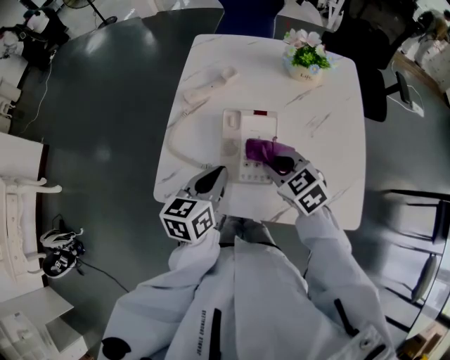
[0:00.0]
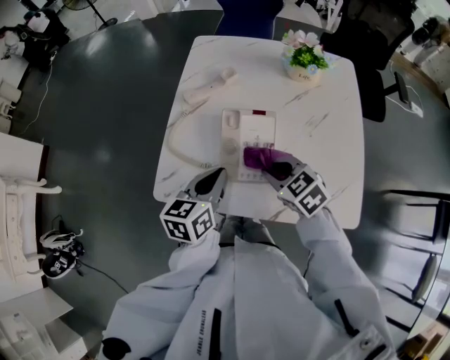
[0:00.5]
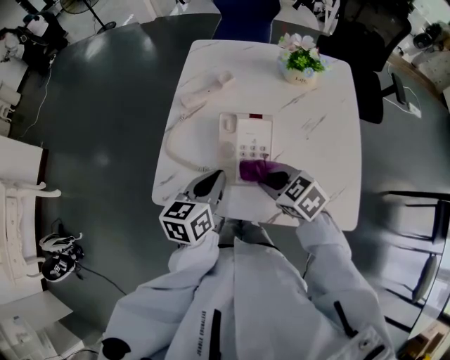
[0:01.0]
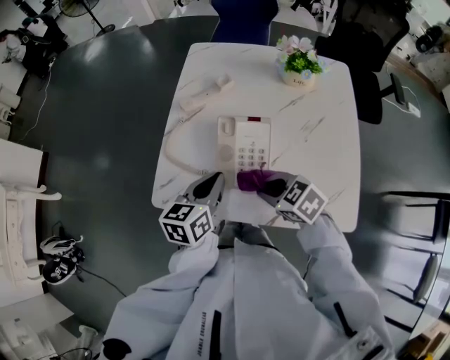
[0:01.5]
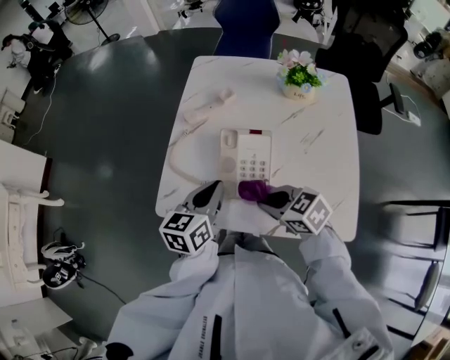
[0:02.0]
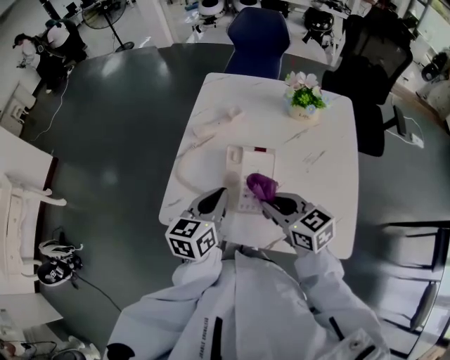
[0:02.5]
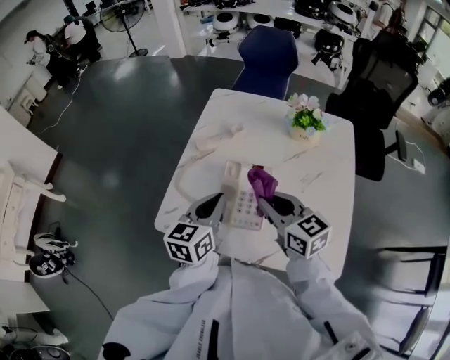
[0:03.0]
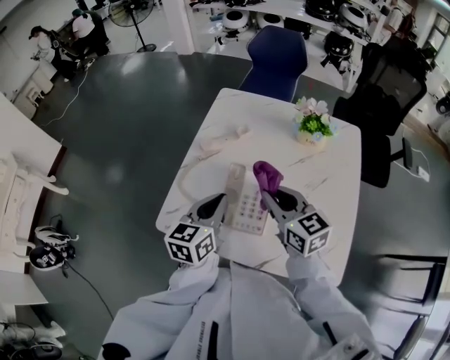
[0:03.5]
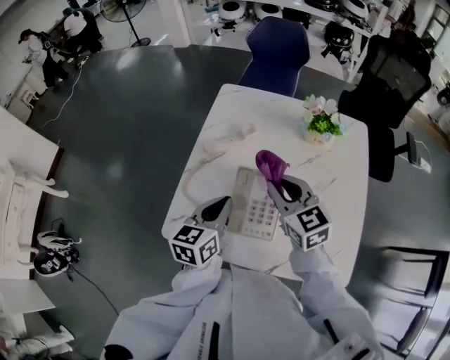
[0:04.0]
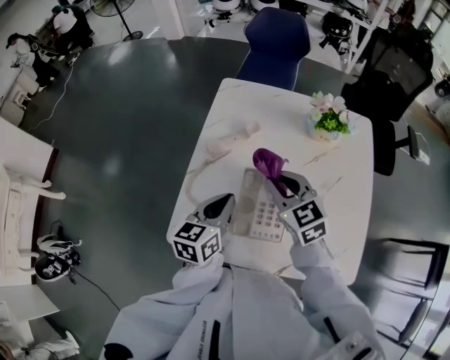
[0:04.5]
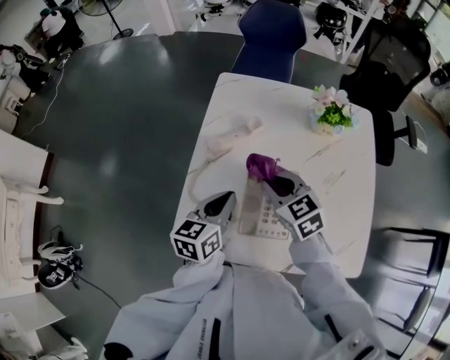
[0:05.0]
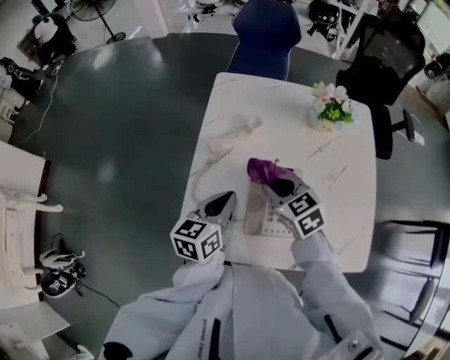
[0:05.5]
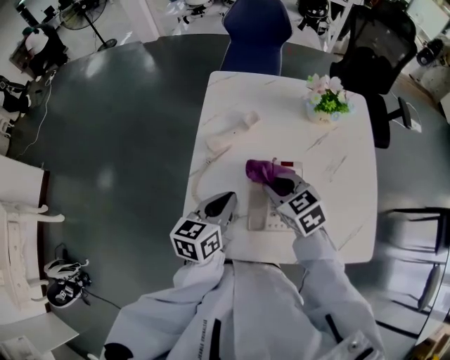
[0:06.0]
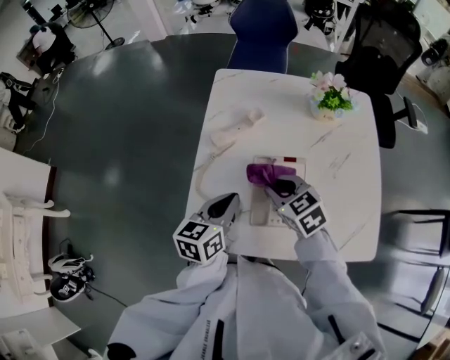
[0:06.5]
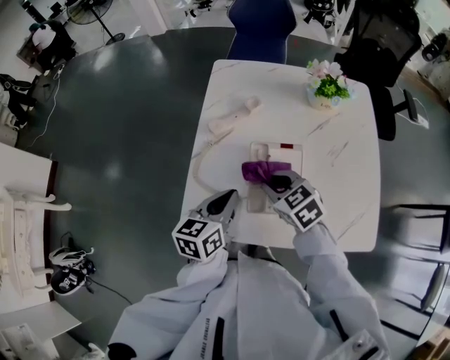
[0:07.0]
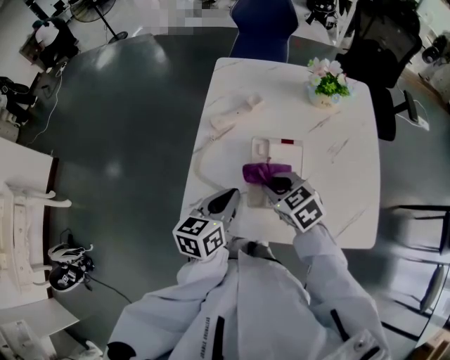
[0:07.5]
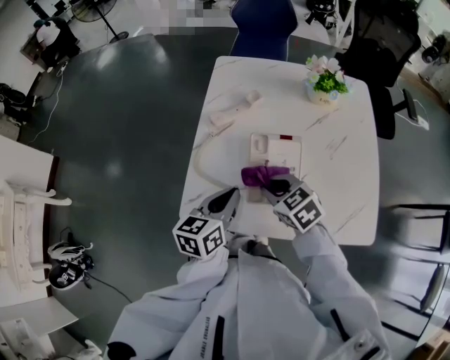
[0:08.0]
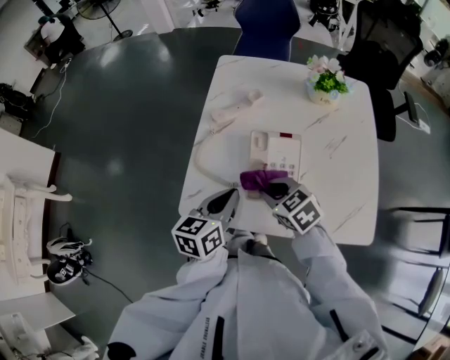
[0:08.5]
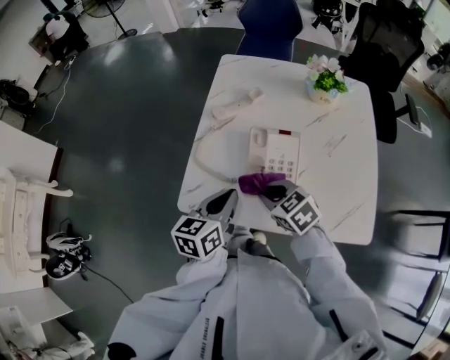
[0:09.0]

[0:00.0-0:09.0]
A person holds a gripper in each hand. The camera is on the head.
0.0 to 2.0 s: The right gripper heads backward, covering about 5 cm, and swivels roughly 20 degrees.
2.0 to 4.5 s: The right gripper is displaced forward by about 20 cm, and swivels roughly 30 degrees; the left gripper heads forward, covering some 10 cm.
4.5 to 7.0 s: The right gripper travels backward and downward by roughly 10 cm. The left gripper changes place by some 5 cm.
7.0 to 9.0 s: Both grippers travel together backward, approximately 5 cm.

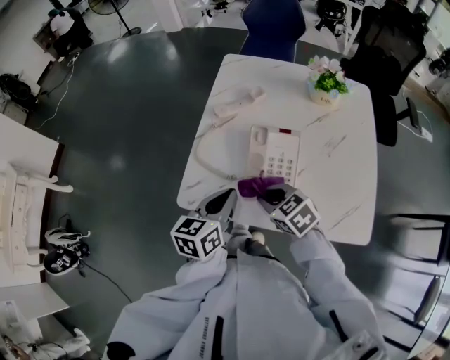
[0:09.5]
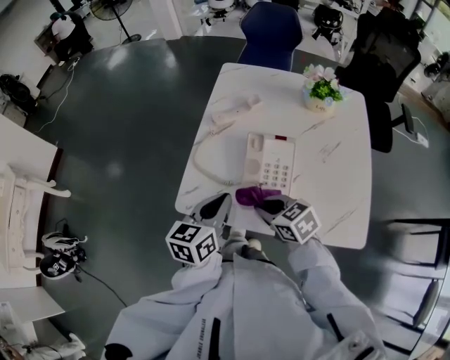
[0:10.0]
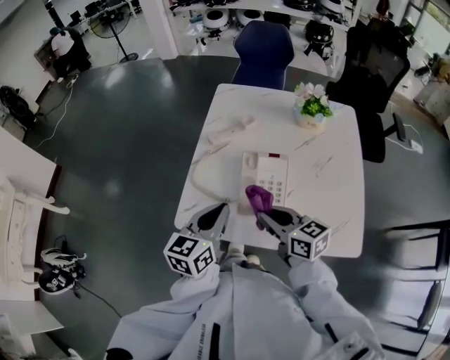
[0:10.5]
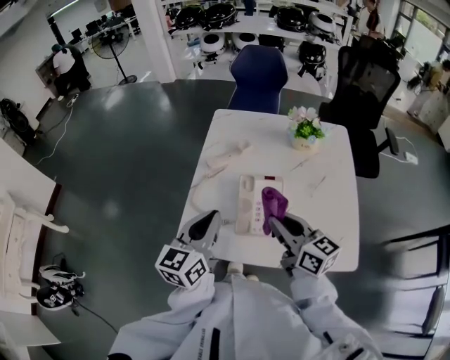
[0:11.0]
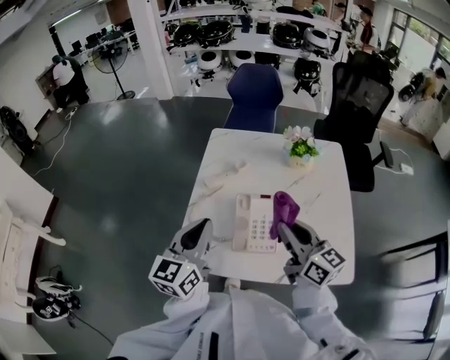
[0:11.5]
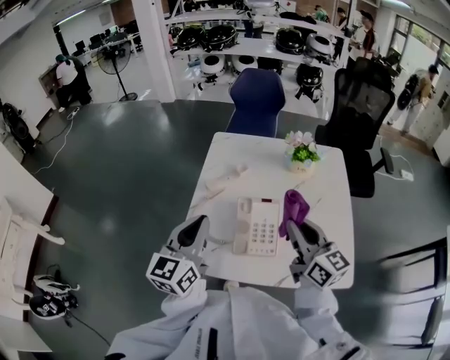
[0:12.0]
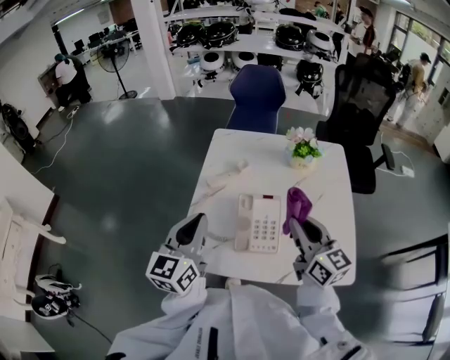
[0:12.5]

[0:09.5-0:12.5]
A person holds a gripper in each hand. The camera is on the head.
9.5 to 11.0 s: The left gripper moves upward, some 10 cm. Meanwhile the right gripper travels upward and to the right by roughly 15 cm, and tilts its fingers about 40 degrees upward.
11.0 to 12.5 s: The right gripper is displaced to the right and upward by some 10 cm. Meanwhile the left gripper moves about 5 cm.

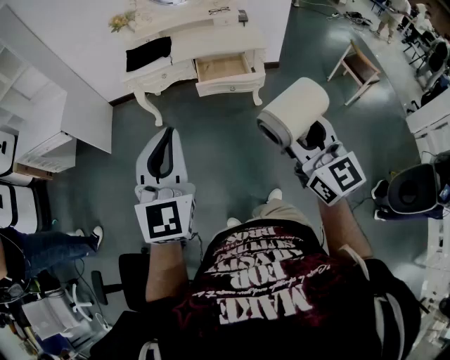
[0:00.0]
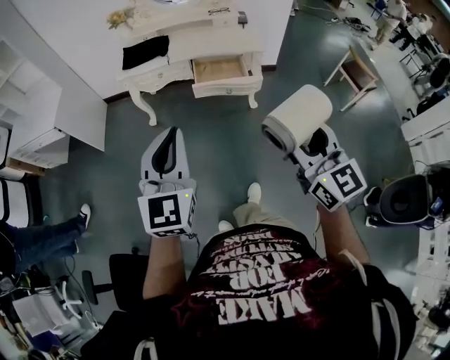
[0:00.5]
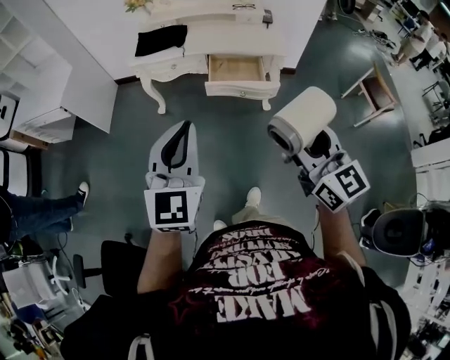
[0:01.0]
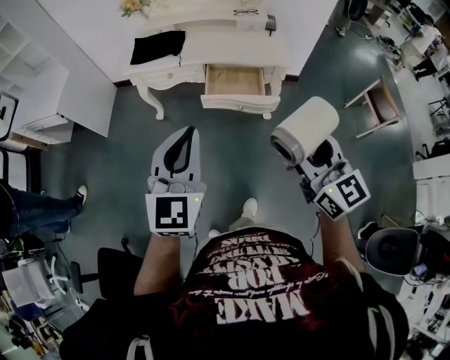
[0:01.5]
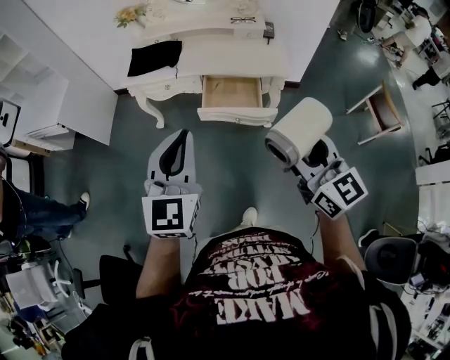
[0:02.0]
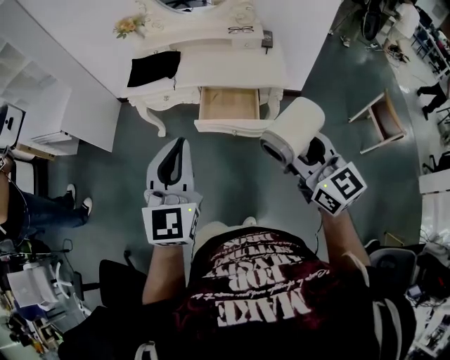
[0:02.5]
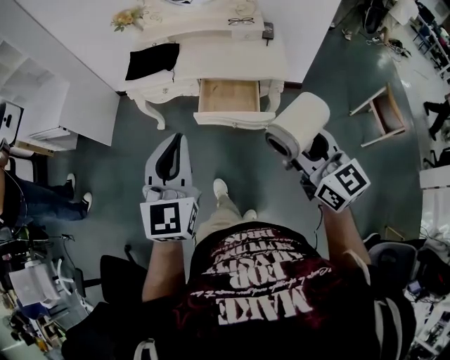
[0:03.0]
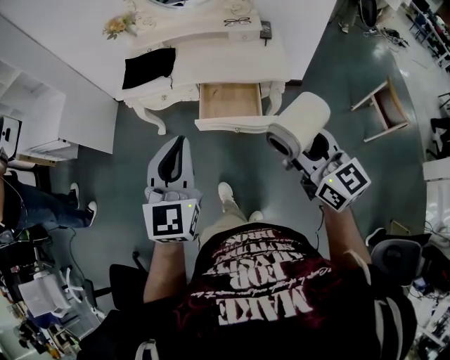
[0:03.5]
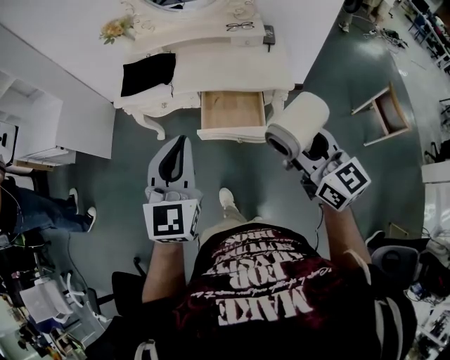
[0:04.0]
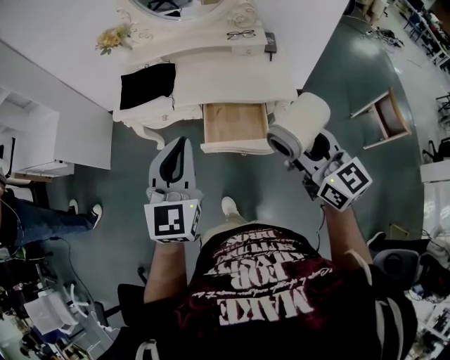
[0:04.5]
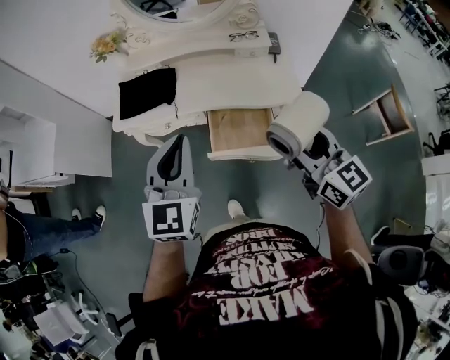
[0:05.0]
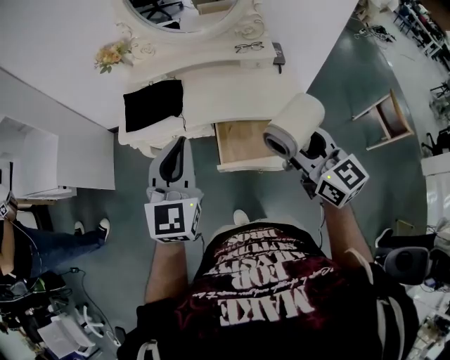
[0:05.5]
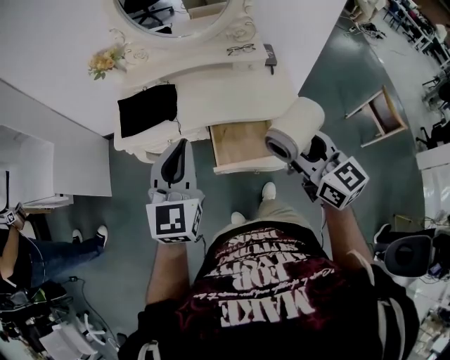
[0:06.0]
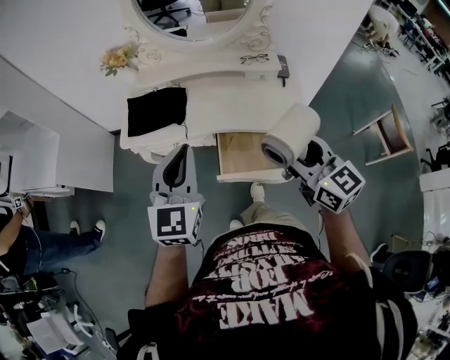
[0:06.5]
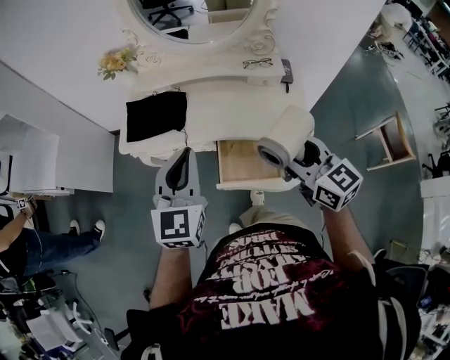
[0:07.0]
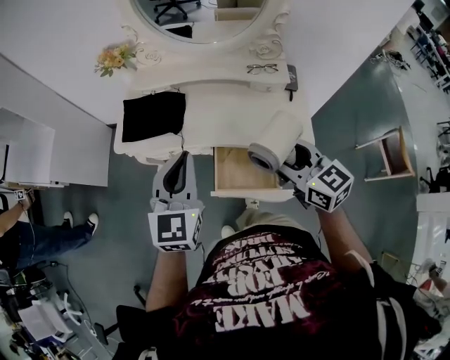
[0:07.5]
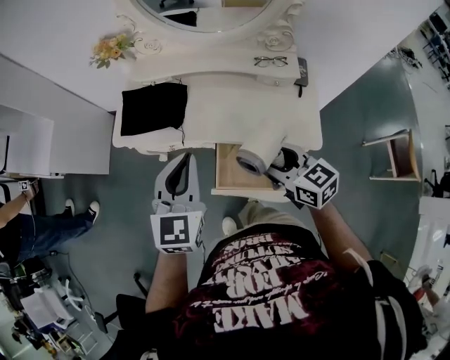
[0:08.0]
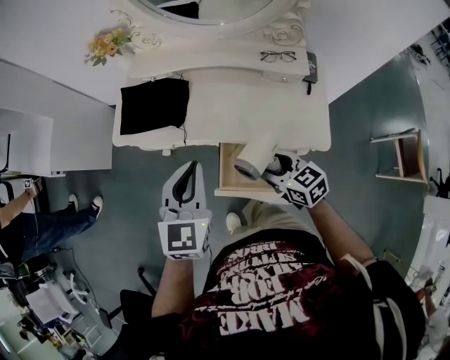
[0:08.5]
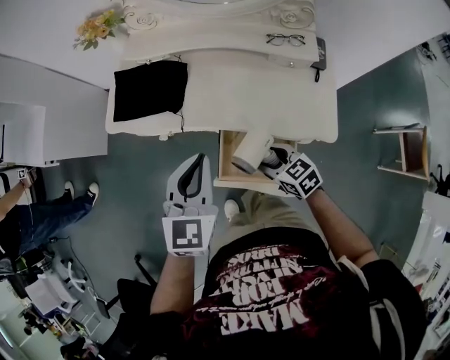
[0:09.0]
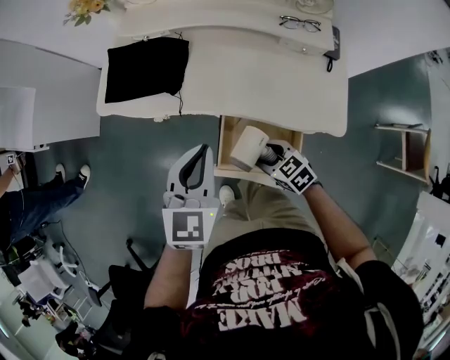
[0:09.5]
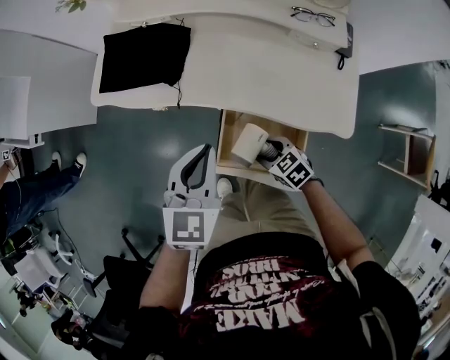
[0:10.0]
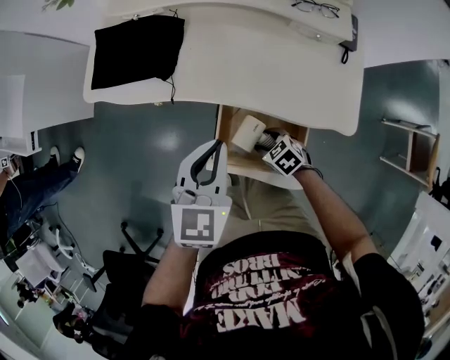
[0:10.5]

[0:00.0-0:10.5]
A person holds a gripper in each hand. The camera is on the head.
0.0 to 2.0 s: The two grippers go roughly 25 cm forward and to the right.
2.0 to 4.0 s: The two grippers go some 10 cm forward.
4.0 to 6.5 s: The two grippers go approximately 20 cm forward.
6.5 to 8.5 s: The left gripper shifts some 15 cm downward, forward and to the right; the right gripper is displaced downward and forward by some 25 cm, and rotates roughly 30 degrees.
8.5 to 10.5 s: The right gripper travels downward by approximately 25 cm, and tips its fingers downward by approximately 30 degrees. Meanwhile the left gripper shifts about 15 cm downward.

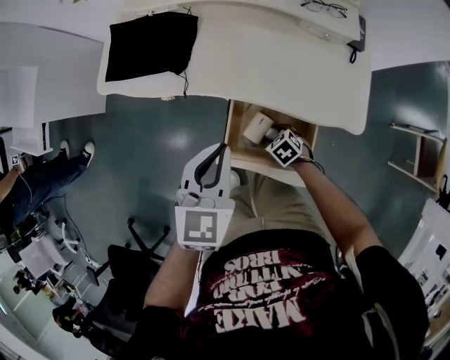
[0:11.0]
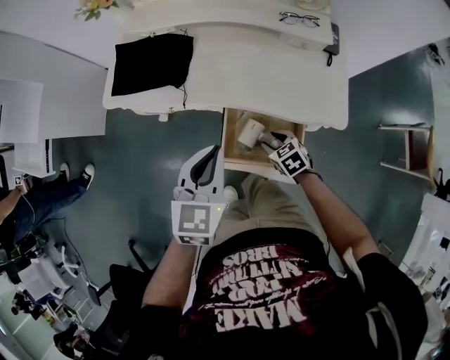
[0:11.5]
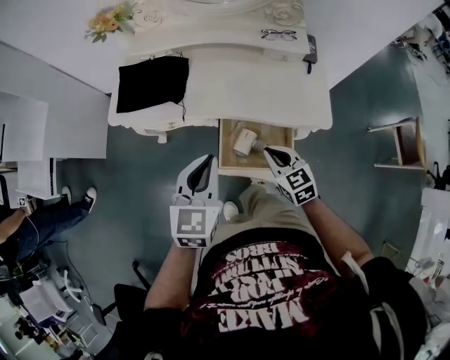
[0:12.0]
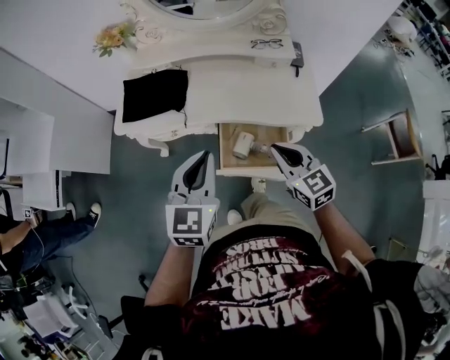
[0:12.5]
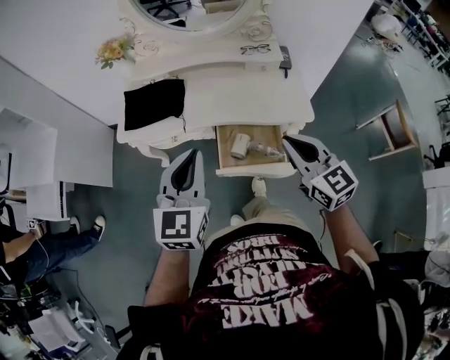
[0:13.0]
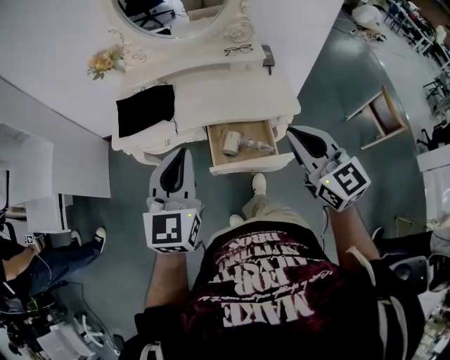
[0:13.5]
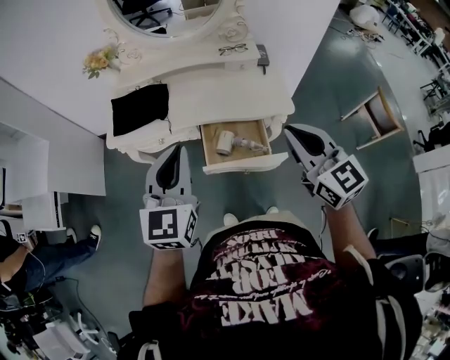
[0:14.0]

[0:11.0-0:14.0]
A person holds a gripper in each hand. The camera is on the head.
11.0 to 12.5 s: The right gripper goes about 35 cm upward, tilts its fingers roughly 50 degrees upward, and closes its fingers. The left gripper goes approximately 15 cm upward and backward.
12.5 to 14.0 s: The left gripper shifts roughly 10 cm upward and backward. The right gripper is displaced upward and backward by about 20 cm.

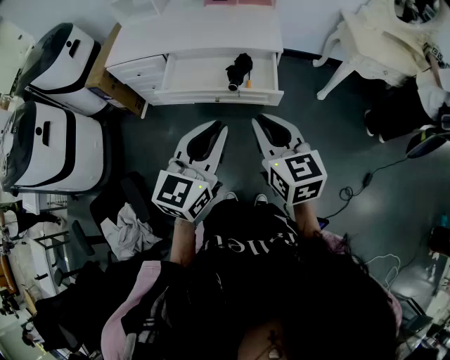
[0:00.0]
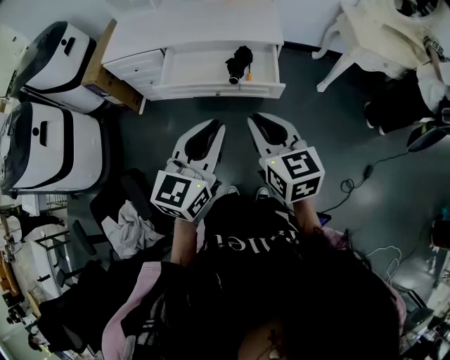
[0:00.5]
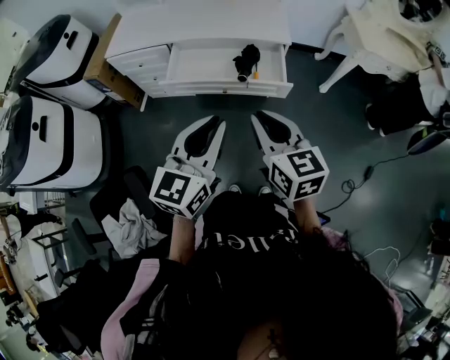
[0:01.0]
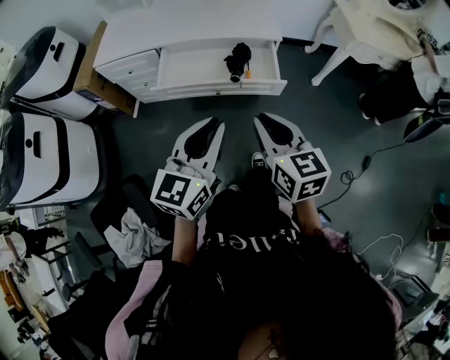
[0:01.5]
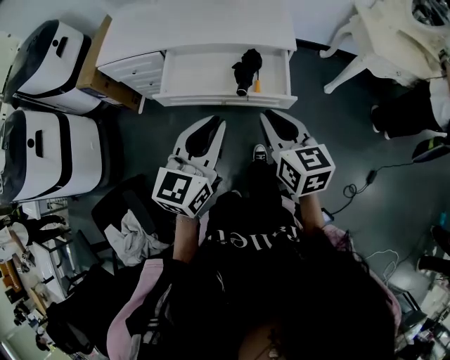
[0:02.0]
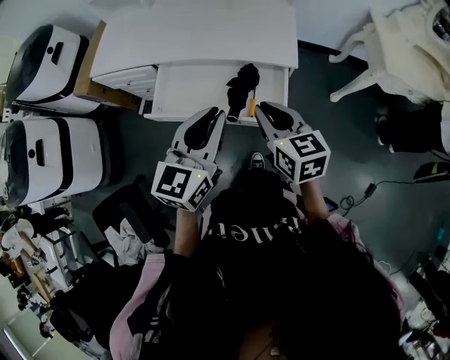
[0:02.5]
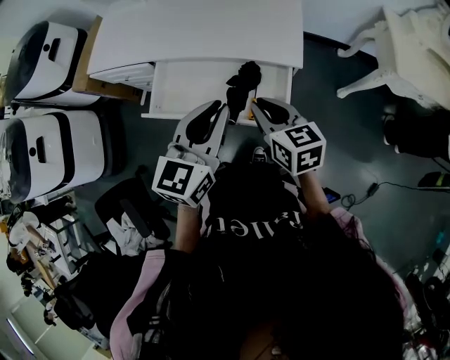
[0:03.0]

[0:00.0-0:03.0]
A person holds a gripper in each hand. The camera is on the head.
0.0 to 1.5 s: The left gripper goes approximately 5 cm to the left; the right gripper moves approximately 5 cm.
1.5 to 3.0 s: Both grippers move forward, roughly 30 cm.
